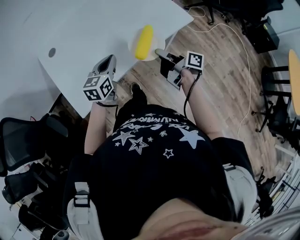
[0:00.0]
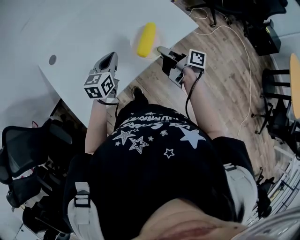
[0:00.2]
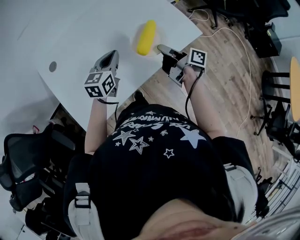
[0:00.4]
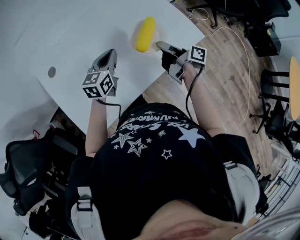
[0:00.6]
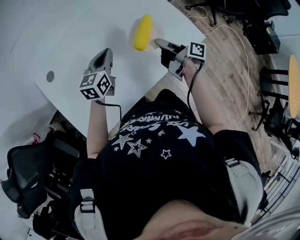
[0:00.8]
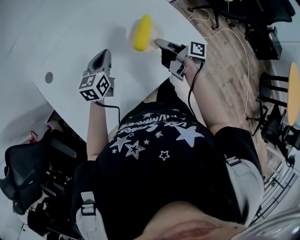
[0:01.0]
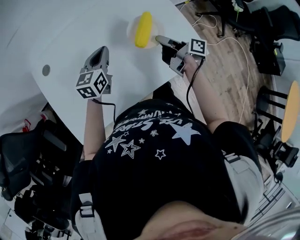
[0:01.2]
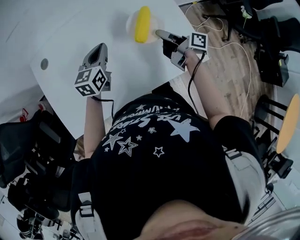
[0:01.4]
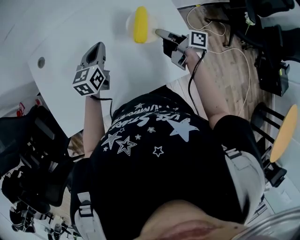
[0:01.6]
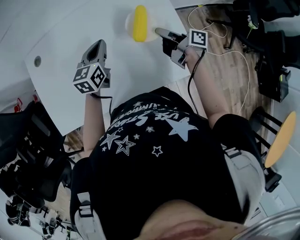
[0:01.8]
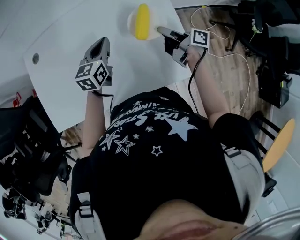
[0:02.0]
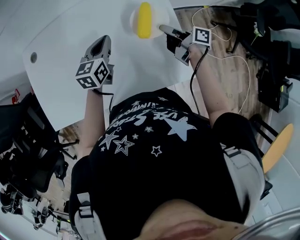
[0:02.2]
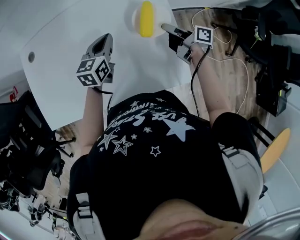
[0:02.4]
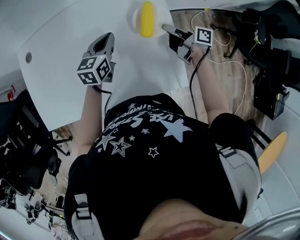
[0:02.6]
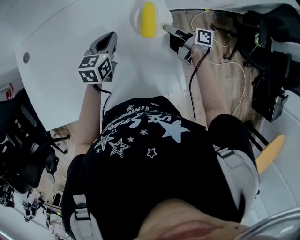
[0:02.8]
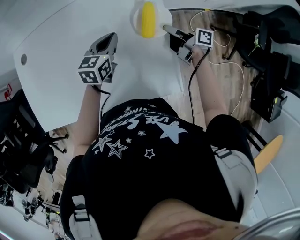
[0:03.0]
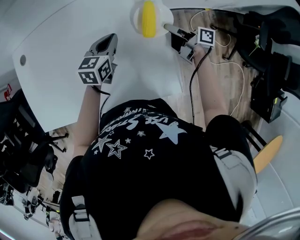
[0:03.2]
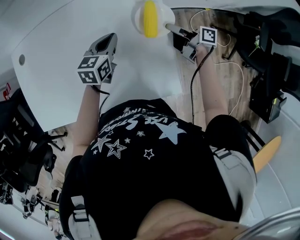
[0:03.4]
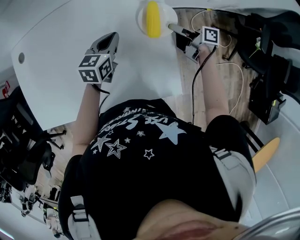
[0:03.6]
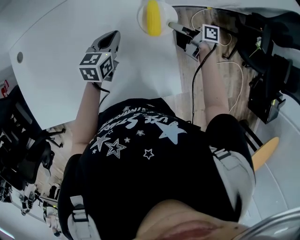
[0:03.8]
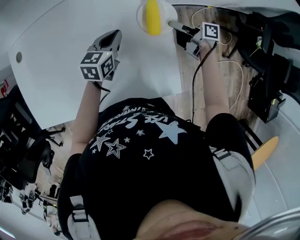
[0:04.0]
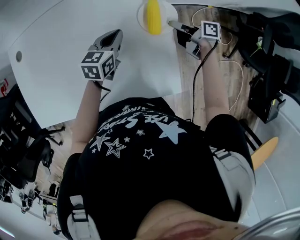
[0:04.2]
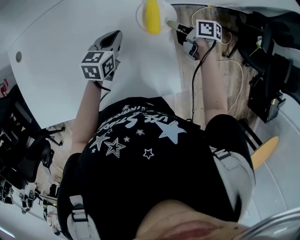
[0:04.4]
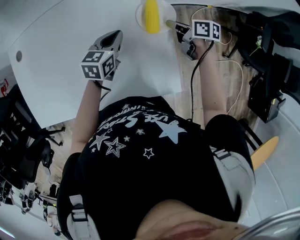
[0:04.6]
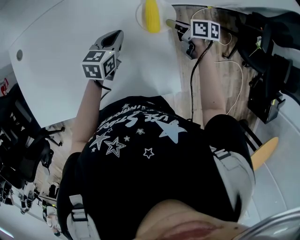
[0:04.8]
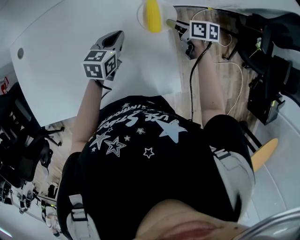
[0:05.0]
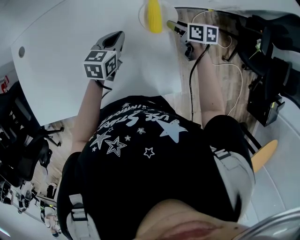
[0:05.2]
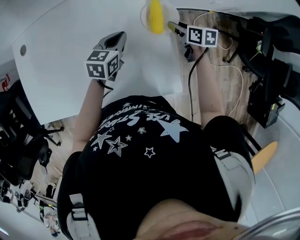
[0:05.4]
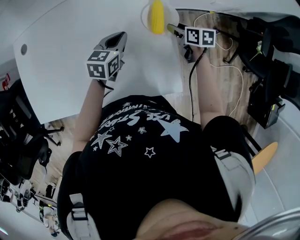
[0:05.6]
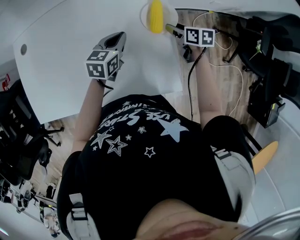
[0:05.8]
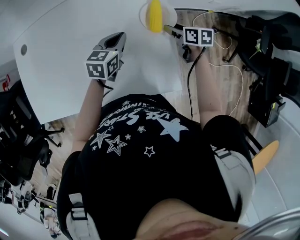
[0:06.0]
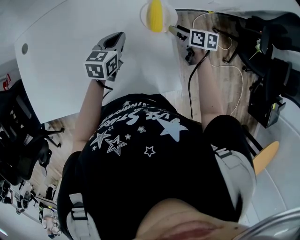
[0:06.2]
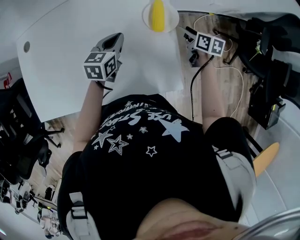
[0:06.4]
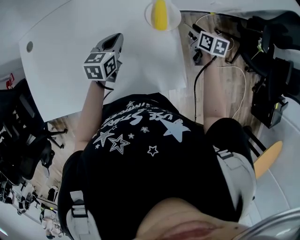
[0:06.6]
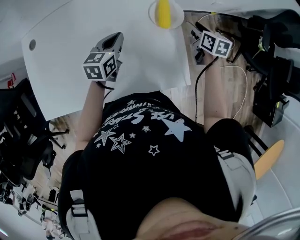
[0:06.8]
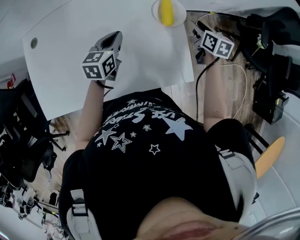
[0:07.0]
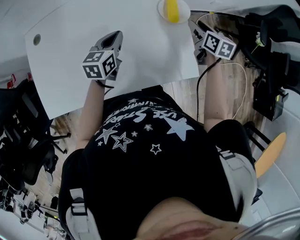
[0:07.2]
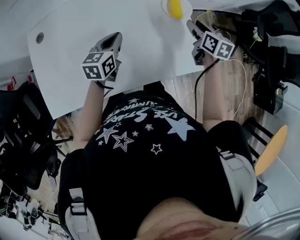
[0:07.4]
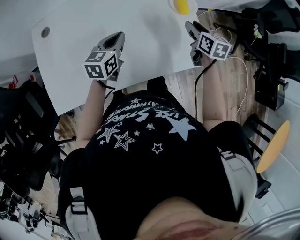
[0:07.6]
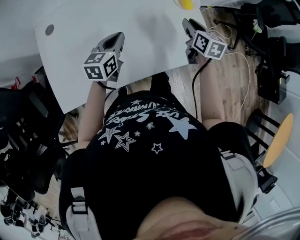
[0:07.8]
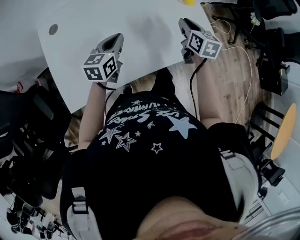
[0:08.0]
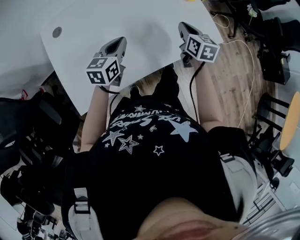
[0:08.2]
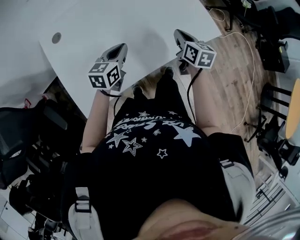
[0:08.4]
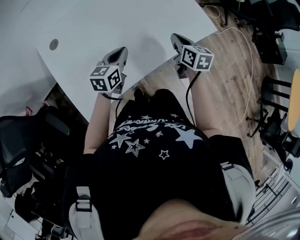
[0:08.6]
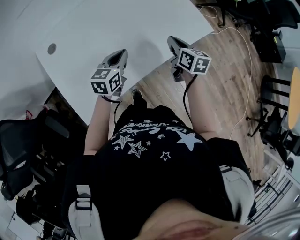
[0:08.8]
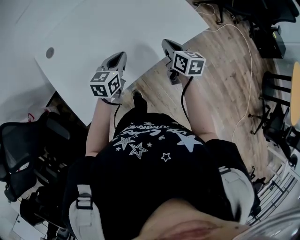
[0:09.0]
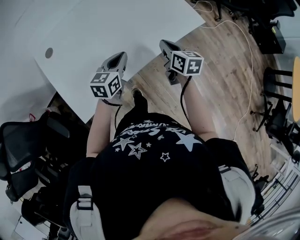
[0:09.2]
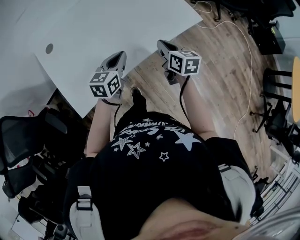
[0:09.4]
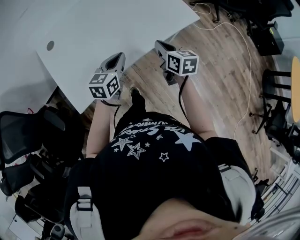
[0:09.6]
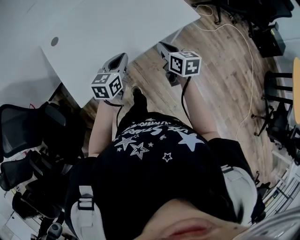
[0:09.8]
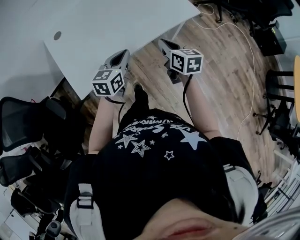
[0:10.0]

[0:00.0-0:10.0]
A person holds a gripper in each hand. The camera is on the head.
0:00.0 to 0:01.4: The two grippers go some 30 cm forward.
0:01.4 to 0:02.8: The left gripper goes about 20 cm to the right, while the right gripper is displaced to the right, forward and downward by some 20 cm.
0:02.8 to 0:04.2: The right gripper ends up some 5 cm from where it was.
0:04.2 to 0:05.8: The right gripper swivels about 40 degrees, and opens its fingers.
0:05.8 to 0:07.2: The right gripper travels upward and backward by some 15 cm, and rotates some 30 degrees. Meanwhile the left gripper goes roughly 10 cm to the left and backward.
0:07.2 to 0:08.6: The grippers both shift backward and to the left by some 30 cm. The right gripper closes up; the left gripper swivels approximately 20 degrees.
0:08.6 to 0:10.0: The left gripper travels backward and to the right by some 20 cm, while the right gripper travels backward by approximately 20 cm.

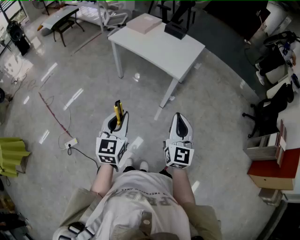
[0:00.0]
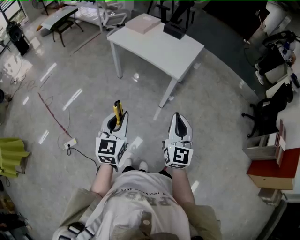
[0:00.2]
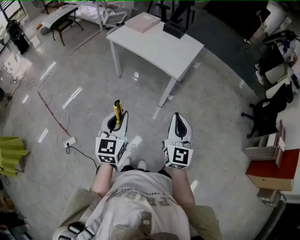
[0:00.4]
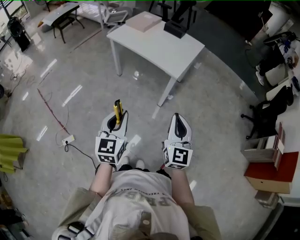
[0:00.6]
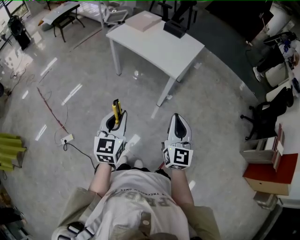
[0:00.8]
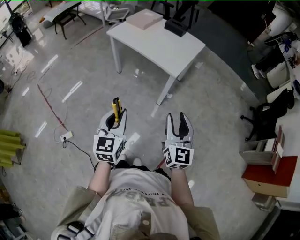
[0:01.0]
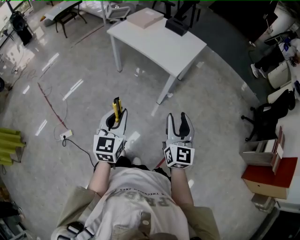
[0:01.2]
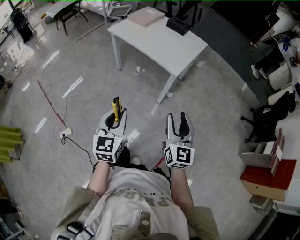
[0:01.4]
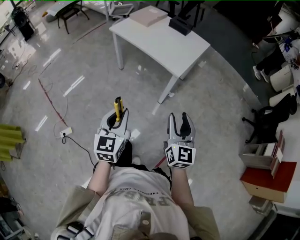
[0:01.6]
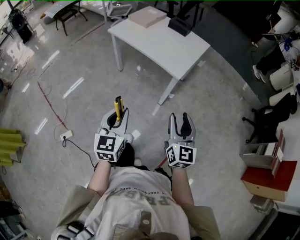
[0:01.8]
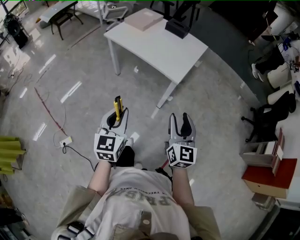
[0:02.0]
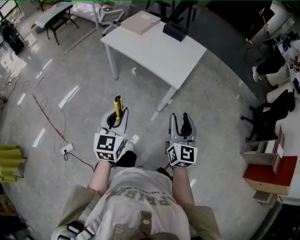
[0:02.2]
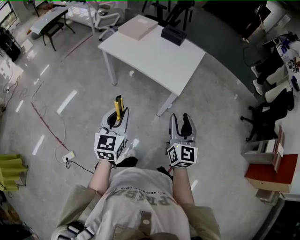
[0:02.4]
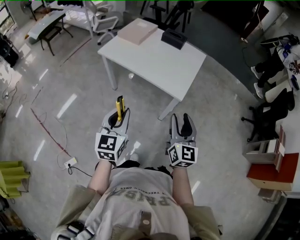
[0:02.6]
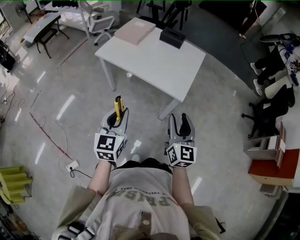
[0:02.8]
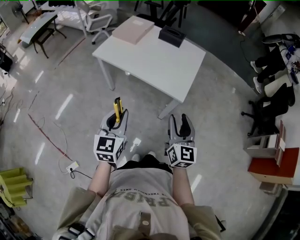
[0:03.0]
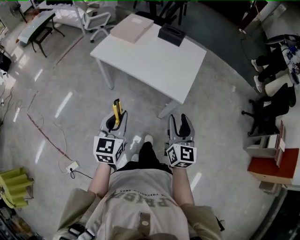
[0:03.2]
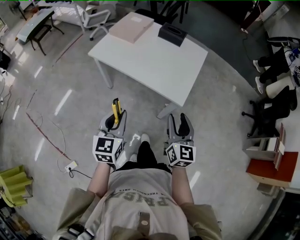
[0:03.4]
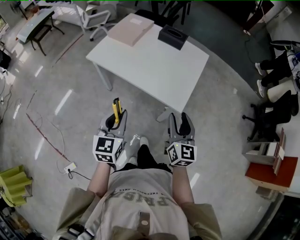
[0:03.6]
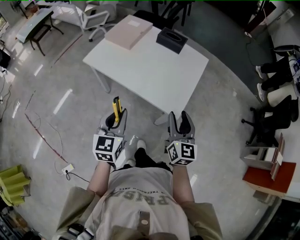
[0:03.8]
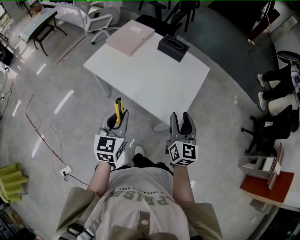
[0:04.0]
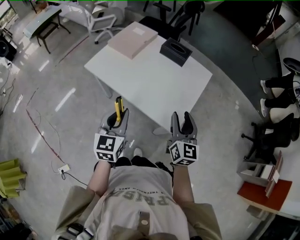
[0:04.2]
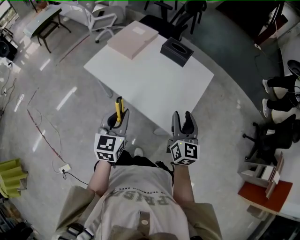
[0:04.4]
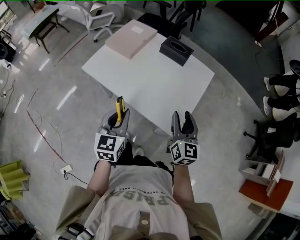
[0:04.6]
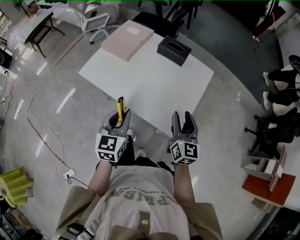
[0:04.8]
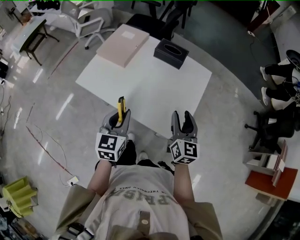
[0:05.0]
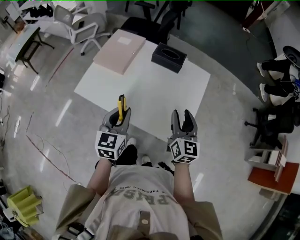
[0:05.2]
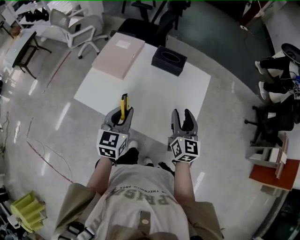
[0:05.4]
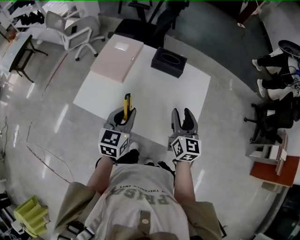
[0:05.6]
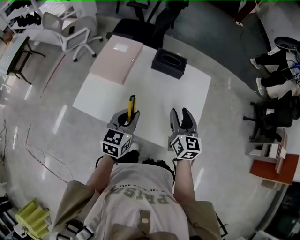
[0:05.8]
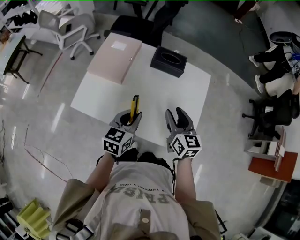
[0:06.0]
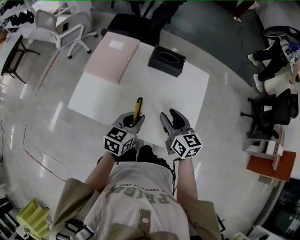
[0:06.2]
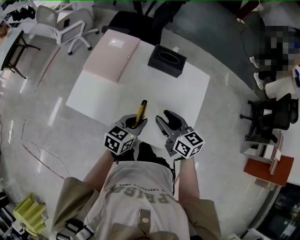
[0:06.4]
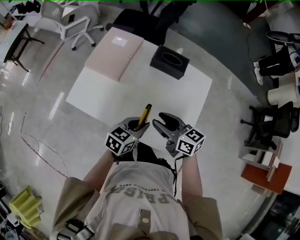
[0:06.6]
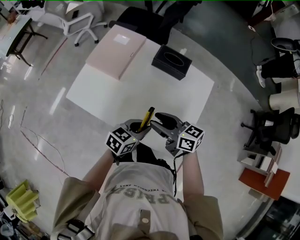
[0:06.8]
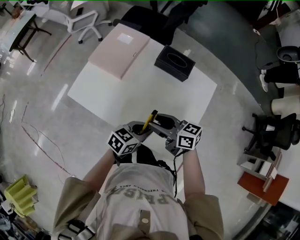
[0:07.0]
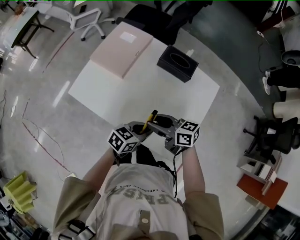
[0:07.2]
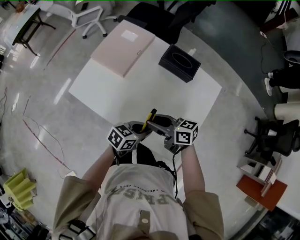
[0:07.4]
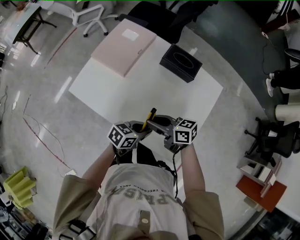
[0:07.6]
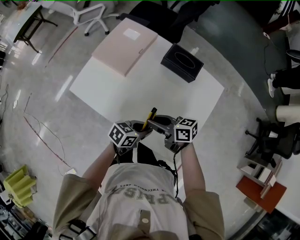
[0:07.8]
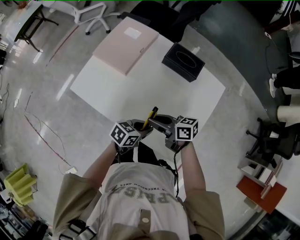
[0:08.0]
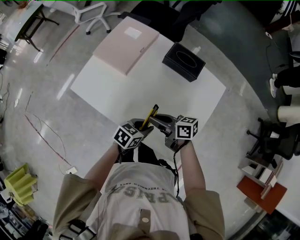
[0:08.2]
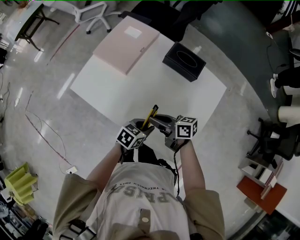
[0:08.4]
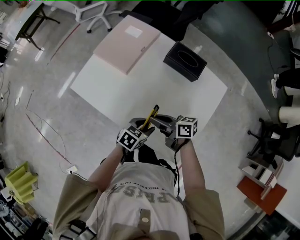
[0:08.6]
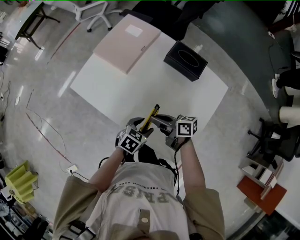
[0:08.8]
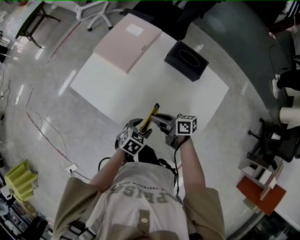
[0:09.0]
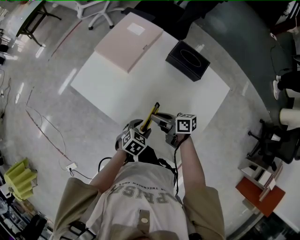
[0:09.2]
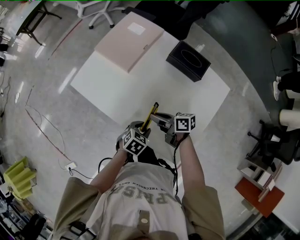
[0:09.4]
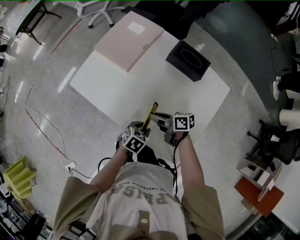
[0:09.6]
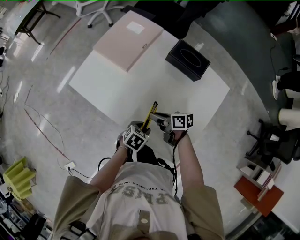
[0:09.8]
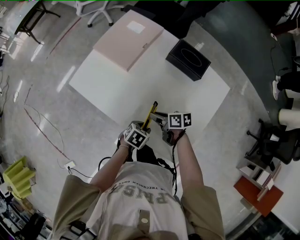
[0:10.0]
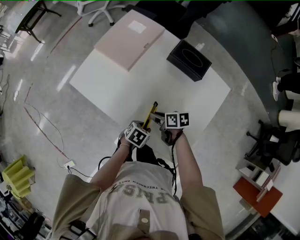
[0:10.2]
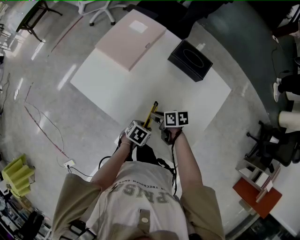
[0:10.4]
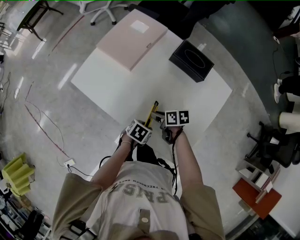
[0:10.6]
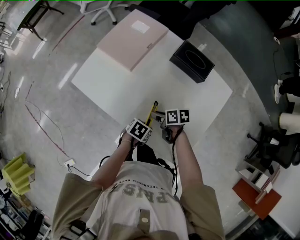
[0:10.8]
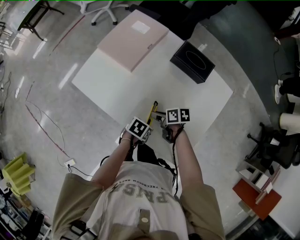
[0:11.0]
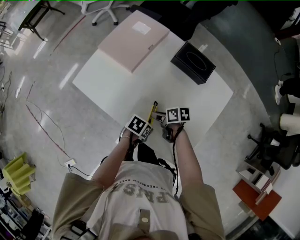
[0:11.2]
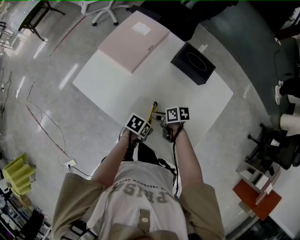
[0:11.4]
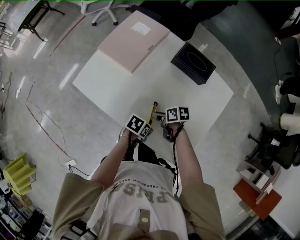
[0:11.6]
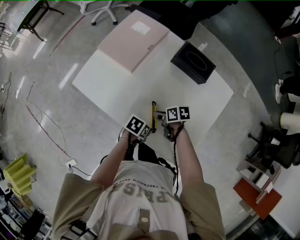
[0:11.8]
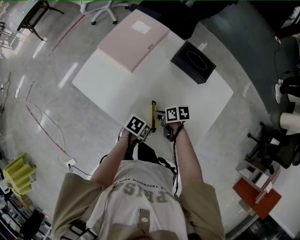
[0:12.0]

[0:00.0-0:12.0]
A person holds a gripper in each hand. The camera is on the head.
0:00.0 to 0:01.6: The left gripper ends up roughly 5 cm from where it was, while the right gripper moves some 5 cm, and opens.
0:01.6 to 0:03.0: Both grippers move forward and to the left, roughly 25 cm.
0:03.0 to 0:04.4: The two grippers go roughly 25 cm forward.
0:04.4 to 0:06.0: The left gripper heads forward, covering roughly 20 cm, and rotates roughly 30 degrees; the right gripper is displaced forward and to the left by approximately 20 cm.
0:06.0 to 0:07.6: Both grippers travel together downward, approximately 10 cm. The right gripper rotates about 60 degrees, and closes up. Meanwhile the left gripper turns by about 30 degrees.
0:07.6 to 0:09.0: Both grippers move downward, roughly 5 cm. The left gripper changes its angle by about 30 degrees, and opens its fingers.
0:09.0 to 0:10.4: The right gripper is displaced downward by approximately 10 cm, and turns by about 30 degrees. The left gripper shifts roughly 5 cm downward, and closes up.
0:10.4 to 0:12.0: The grippers stay close to where they were, moving slightly.

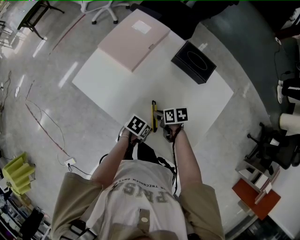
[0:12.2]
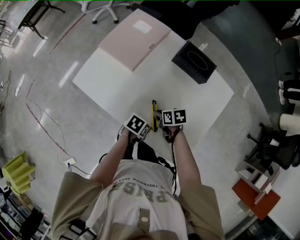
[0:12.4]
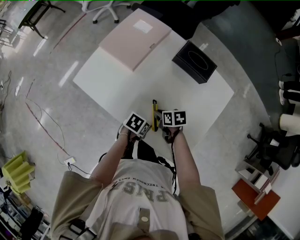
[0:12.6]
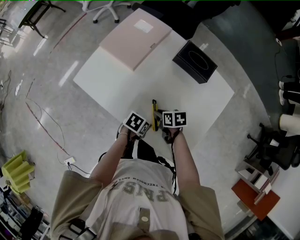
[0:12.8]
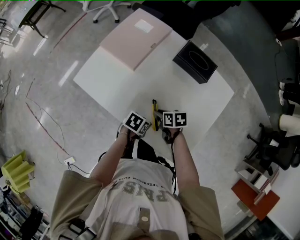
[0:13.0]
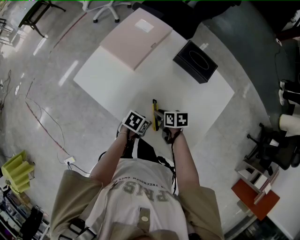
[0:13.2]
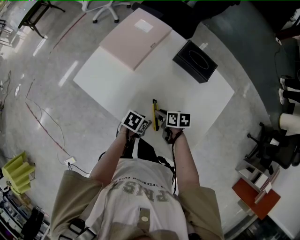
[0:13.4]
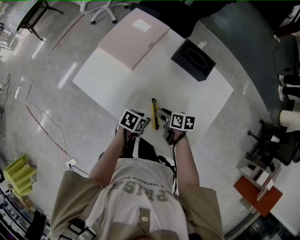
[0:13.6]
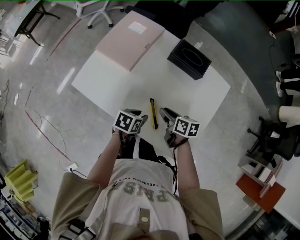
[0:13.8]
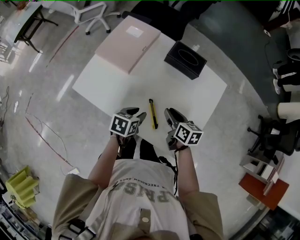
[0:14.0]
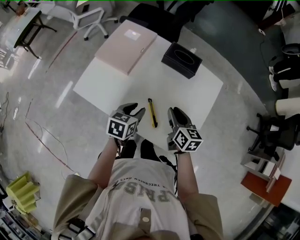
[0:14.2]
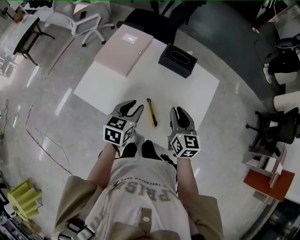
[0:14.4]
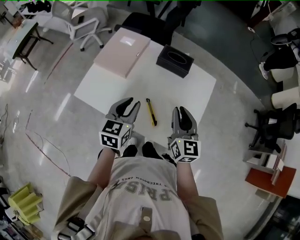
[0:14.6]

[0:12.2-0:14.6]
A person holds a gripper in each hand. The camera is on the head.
0:12.2 to 0:13.4: The grippers stay close to where they were, moving slightly.
0:13.4 to 0:14.6: Both grippers move upward, approximately 25 cm. The left gripper angles its fingers upward, by approximately 30 degrees. Meanwhile the right gripper tips its fingers upward by about 40 degrees.
